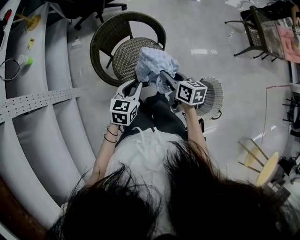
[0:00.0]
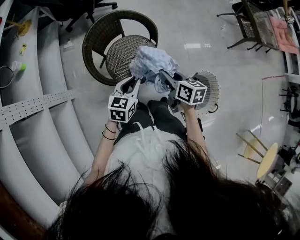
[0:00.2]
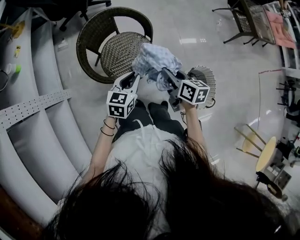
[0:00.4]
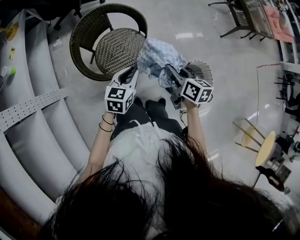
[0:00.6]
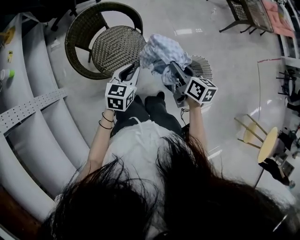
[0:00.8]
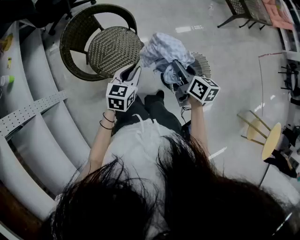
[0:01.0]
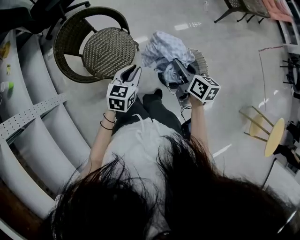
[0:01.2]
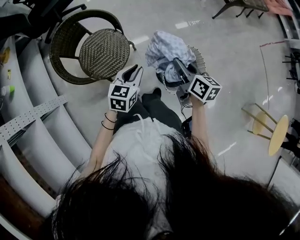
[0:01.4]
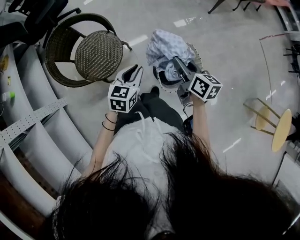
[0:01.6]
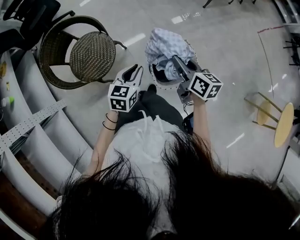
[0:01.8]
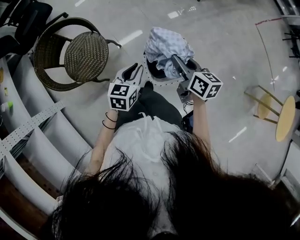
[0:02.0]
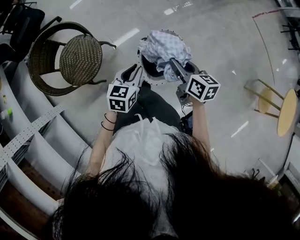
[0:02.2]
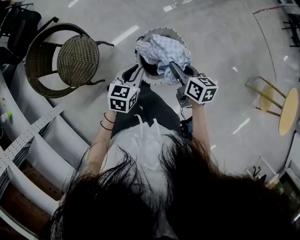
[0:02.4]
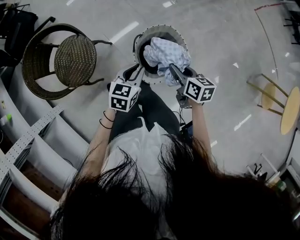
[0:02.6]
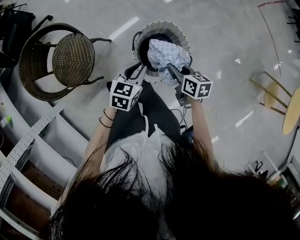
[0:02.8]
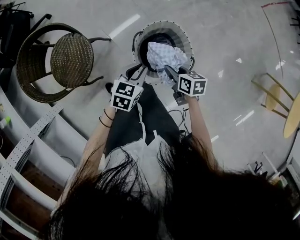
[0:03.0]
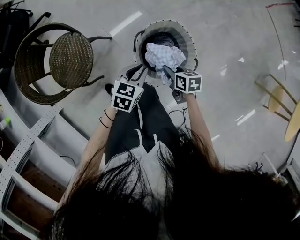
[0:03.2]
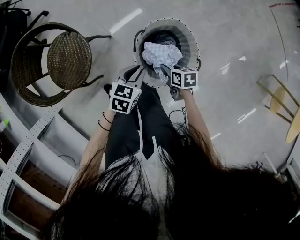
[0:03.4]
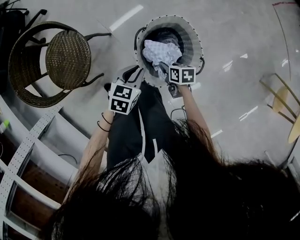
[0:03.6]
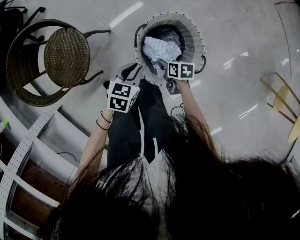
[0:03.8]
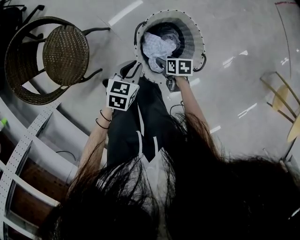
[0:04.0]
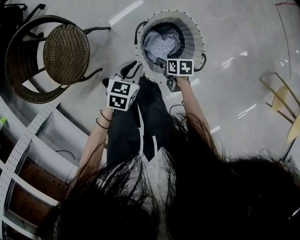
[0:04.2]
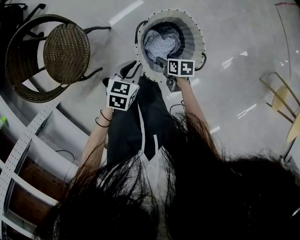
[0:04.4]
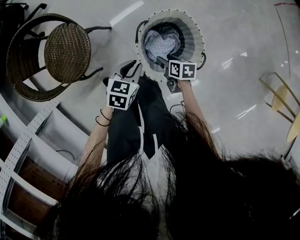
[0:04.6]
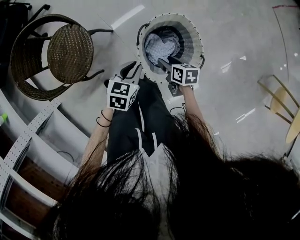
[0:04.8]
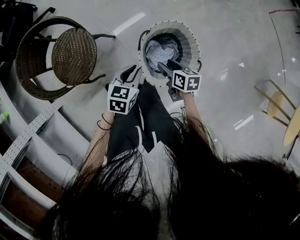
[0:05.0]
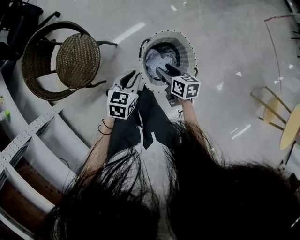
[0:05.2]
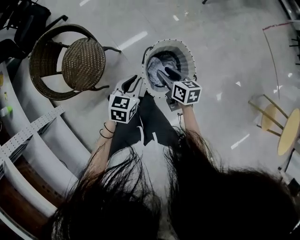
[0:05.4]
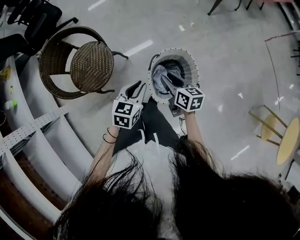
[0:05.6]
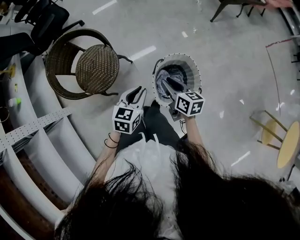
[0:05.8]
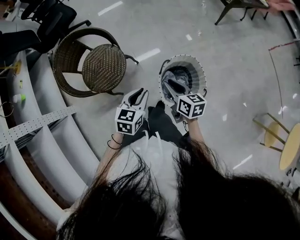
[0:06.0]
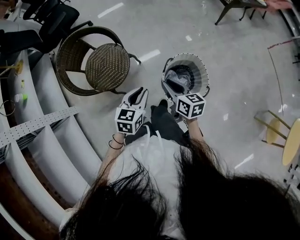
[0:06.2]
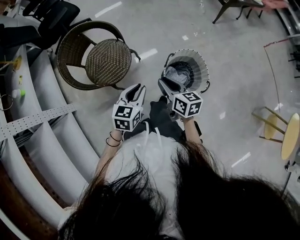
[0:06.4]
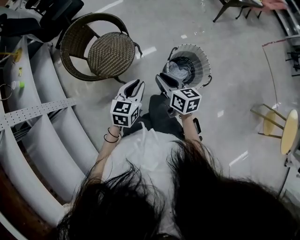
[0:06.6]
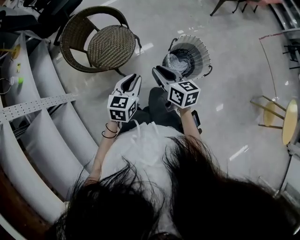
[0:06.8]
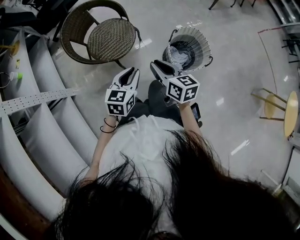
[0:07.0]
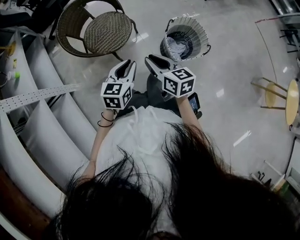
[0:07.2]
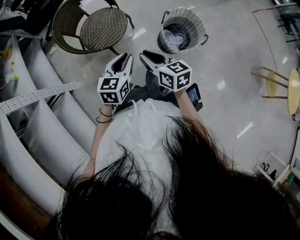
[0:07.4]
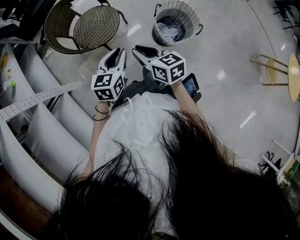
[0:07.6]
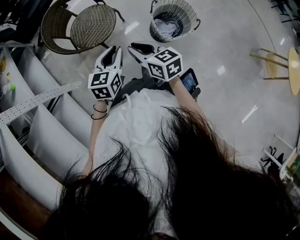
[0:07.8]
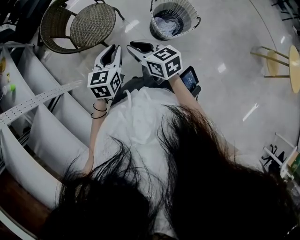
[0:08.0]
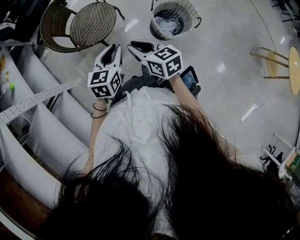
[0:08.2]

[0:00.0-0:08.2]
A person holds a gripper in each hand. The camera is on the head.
0:00.0 to 0:01.6: The two grippers go about 30 cm to the right. The right gripper turns by roughly 30 degrees.
0:01.6 to 0:03.2: The left gripper goes some 25 cm to the right and downward, and swivels about 30 degrees, while the right gripper moves downward and to the right, some 35 cm, and rotates about 30 degrees.
0:03.2 to 0:05.0: The right gripper moves some 10 cm downward and comes back, and opens its fingers.
0:05.0 to 0:06.6: The right gripper moves upward and to the left, some 35 cm, swivels about 30 degrees, and closes its fingers. The left gripper is displaced to the left, upward and backward by about 30 cm, and turns by some 20 degrees.
0:06.6 to 0:08.2: The grippers both shift backward and to the left by roughly 15 cm.

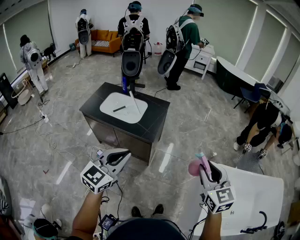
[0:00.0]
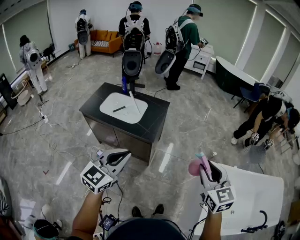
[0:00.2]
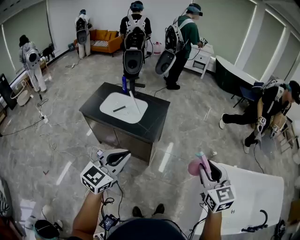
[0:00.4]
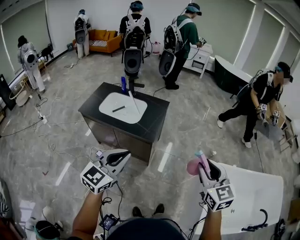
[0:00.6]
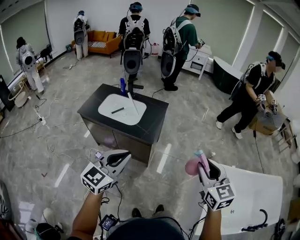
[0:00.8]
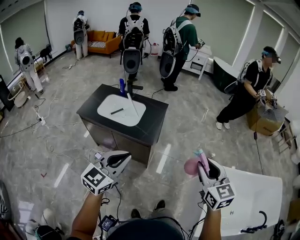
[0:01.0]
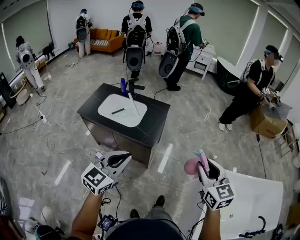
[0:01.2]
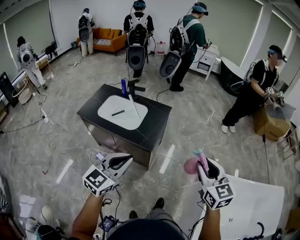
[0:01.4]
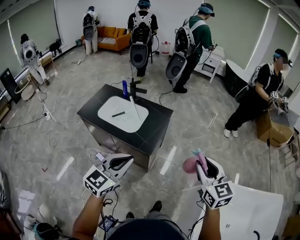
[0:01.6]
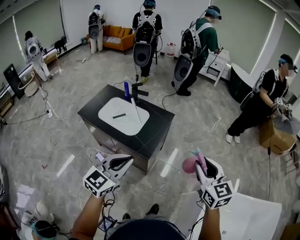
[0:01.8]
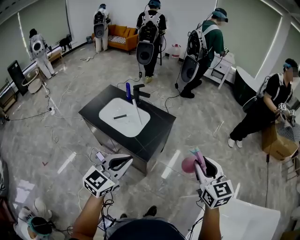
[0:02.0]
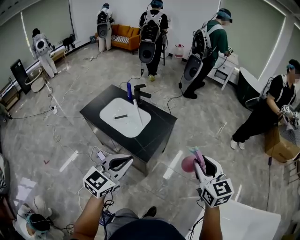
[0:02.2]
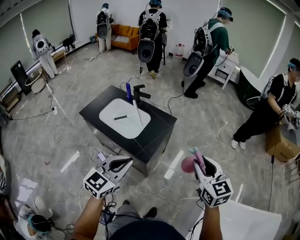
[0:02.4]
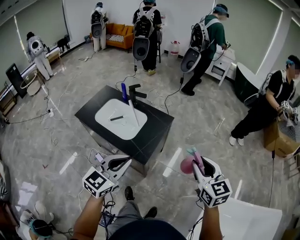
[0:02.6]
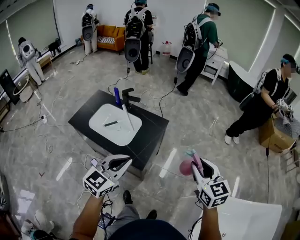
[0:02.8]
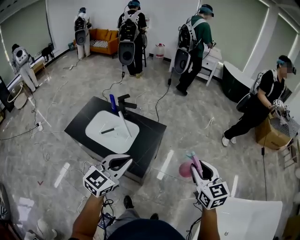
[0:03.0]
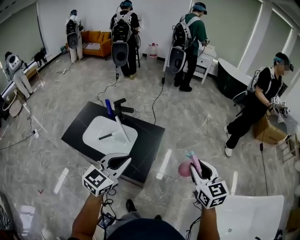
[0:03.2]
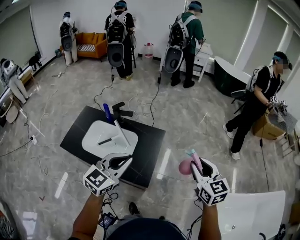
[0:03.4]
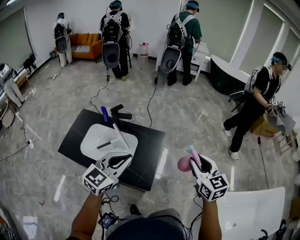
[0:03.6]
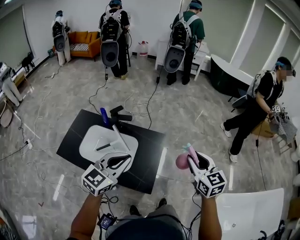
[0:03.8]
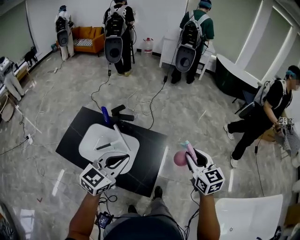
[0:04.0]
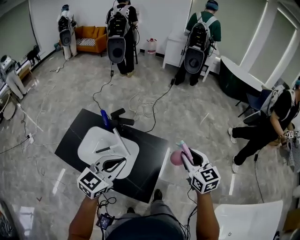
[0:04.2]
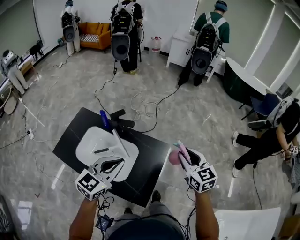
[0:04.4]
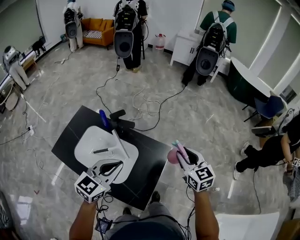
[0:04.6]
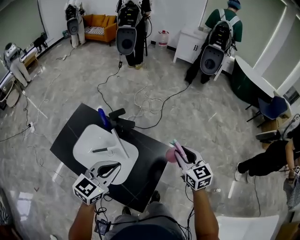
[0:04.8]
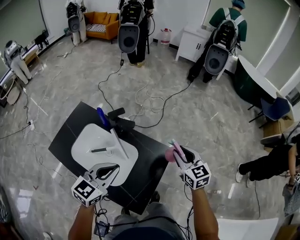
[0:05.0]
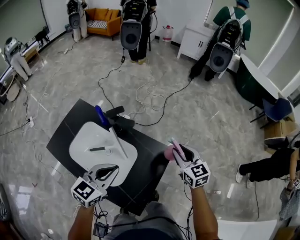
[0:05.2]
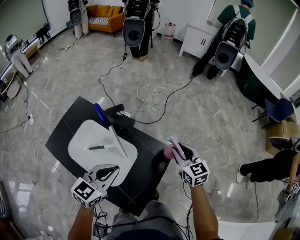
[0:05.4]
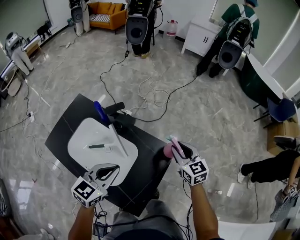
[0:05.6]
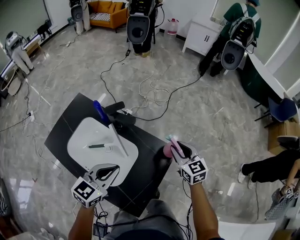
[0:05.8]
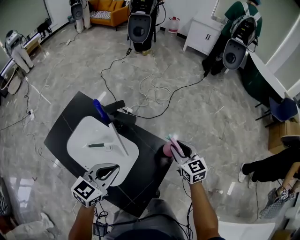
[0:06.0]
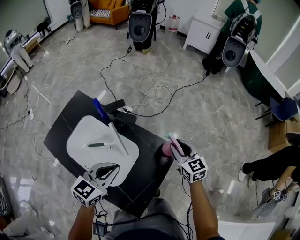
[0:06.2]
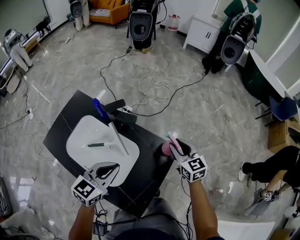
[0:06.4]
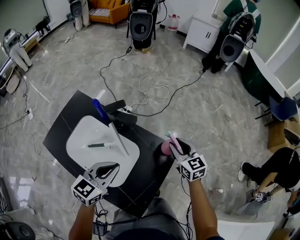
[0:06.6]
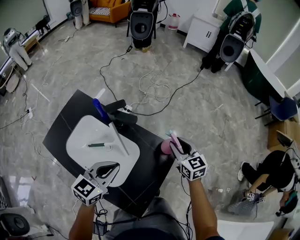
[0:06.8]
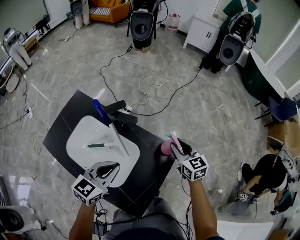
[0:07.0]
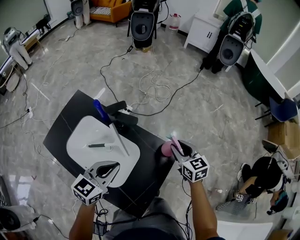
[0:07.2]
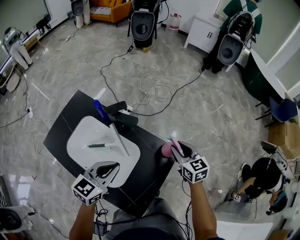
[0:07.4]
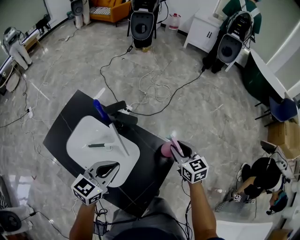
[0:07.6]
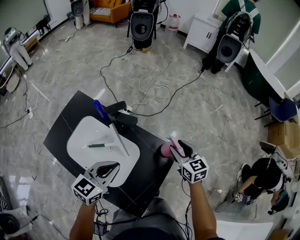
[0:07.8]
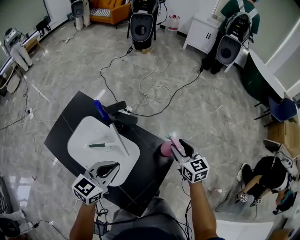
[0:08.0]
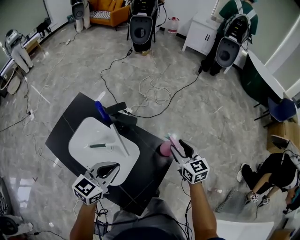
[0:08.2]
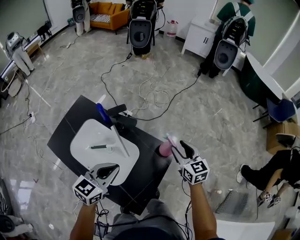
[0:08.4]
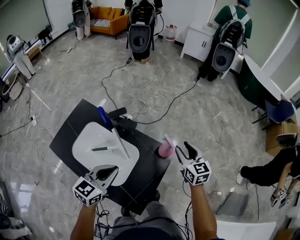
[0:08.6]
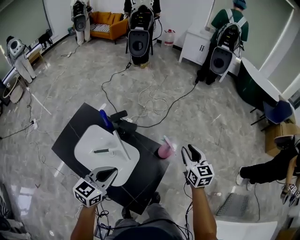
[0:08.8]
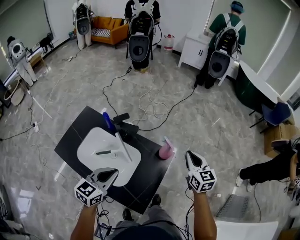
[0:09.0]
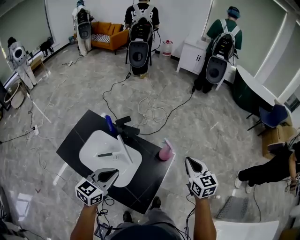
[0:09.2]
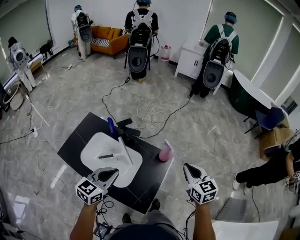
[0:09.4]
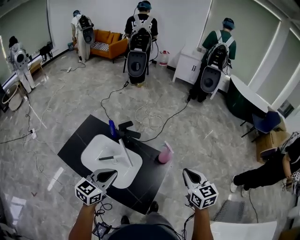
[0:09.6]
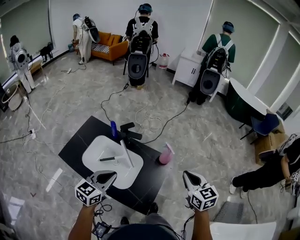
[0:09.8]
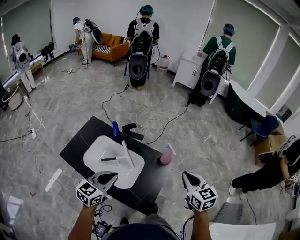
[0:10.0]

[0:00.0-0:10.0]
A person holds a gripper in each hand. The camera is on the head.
0:00.0 to 0:01.4: The two grippers go roughly 10 cm forward.
0:01.4 to 0:02.8: Both grippers travel together forward, about 20 cm.
0:02.8 to 0:04.2: The two grippers go about 30 cm forward and to the left.
0:04.2 to 0:05.8: The left gripper heads downward and forward, covering approximately 20 cm, while the right gripper is displaced downward and forward by roughly 30 cm.
0:05.8 to 0:07.2: There are only small adjustments of the grippers.
0:07.2 to 0:08.6: The right gripper heads upward, covering roughly 10 cm. Meanwhile the left gripper heads upward, covering some 5 cm.
0:08.6 to 0:10.0: The left gripper moves backward, upward and to the left, approximately 15 cm. The right gripper heads backward and upward, covering roughly 25 cm, and closes its fingers.

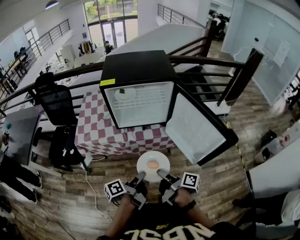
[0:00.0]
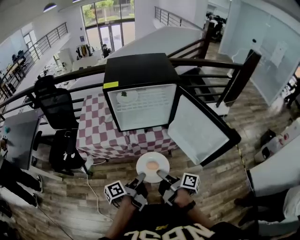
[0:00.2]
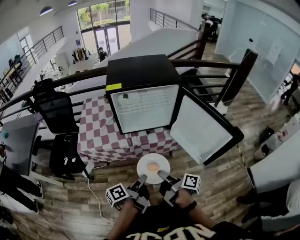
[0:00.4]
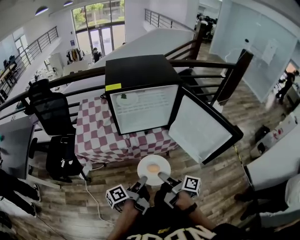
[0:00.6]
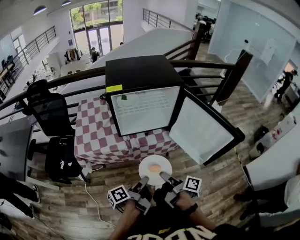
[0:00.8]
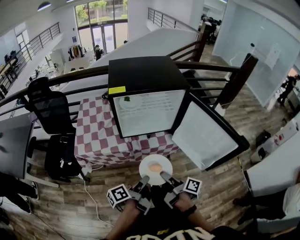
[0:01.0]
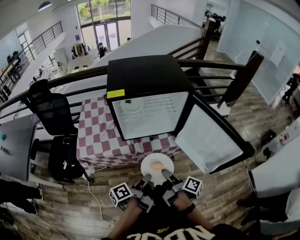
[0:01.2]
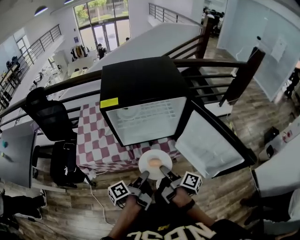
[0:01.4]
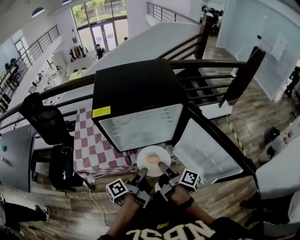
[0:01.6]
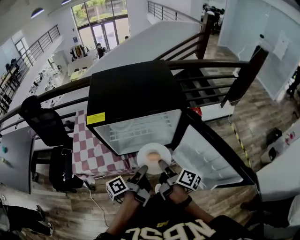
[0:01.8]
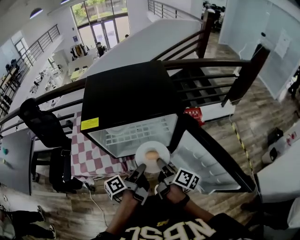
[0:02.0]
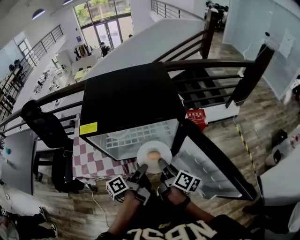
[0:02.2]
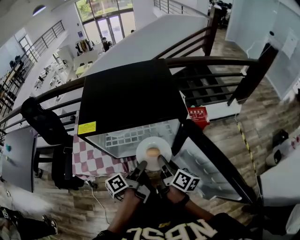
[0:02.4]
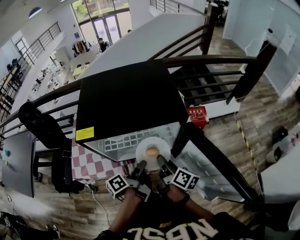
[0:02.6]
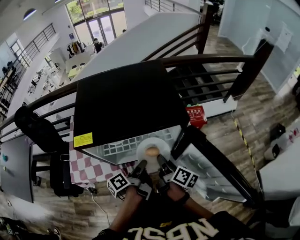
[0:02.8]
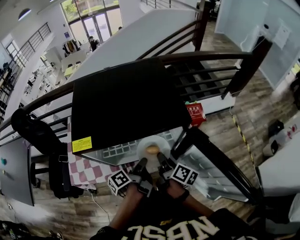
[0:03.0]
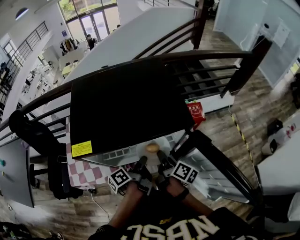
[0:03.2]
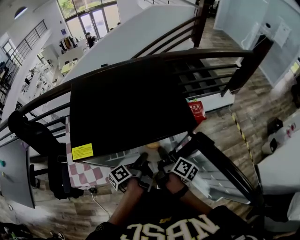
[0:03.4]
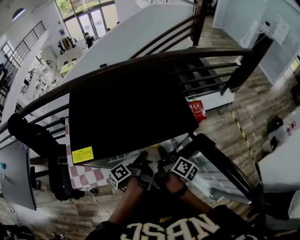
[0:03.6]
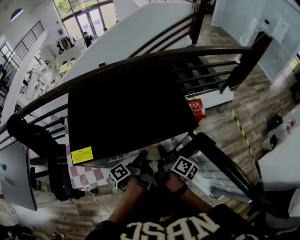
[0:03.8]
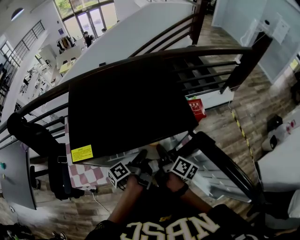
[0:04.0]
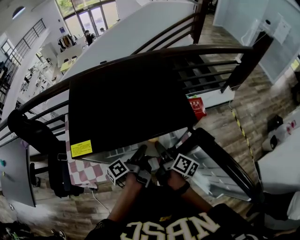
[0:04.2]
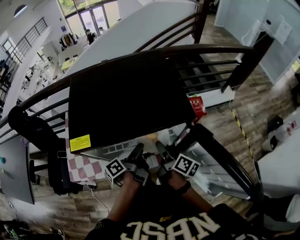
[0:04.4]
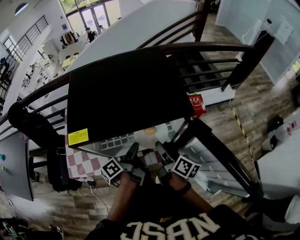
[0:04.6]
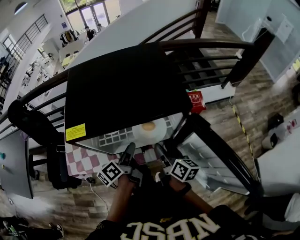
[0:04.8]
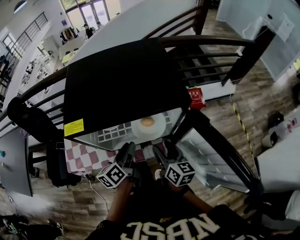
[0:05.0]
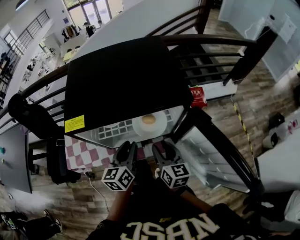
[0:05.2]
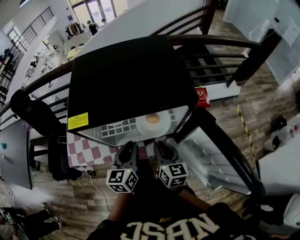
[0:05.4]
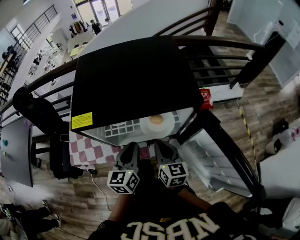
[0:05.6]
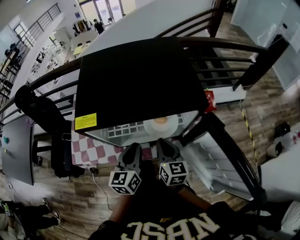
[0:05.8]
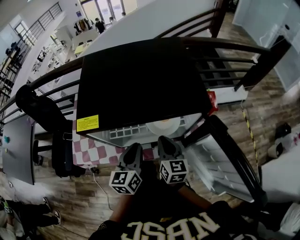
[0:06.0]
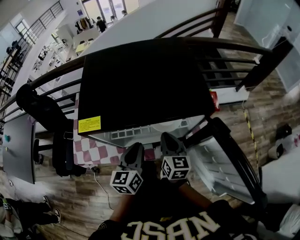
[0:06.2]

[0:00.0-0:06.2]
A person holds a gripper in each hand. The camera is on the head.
0:00.0 to 0:01.6: The grippers both shift forward by approximately 20 cm.
0:01.6 to 0:03.2: Both grippers move forward, some 20 cm.
0:03.2 to 0:04.6: The right gripper opens up, while the left gripper opens up.
0:04.6 to 0:06.2: The right gripper ends up some 5 cm from where it was, rolls counterclockwise, seen from behind, by some 40 degrees, and closes; the left gripper moves approximately 5 cm, rotates around the line of its fingers by some 60 degrees, clockwise from behind, and closes its fingers.
